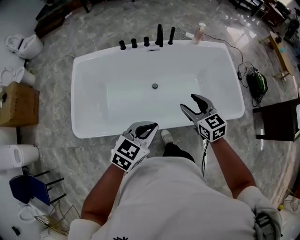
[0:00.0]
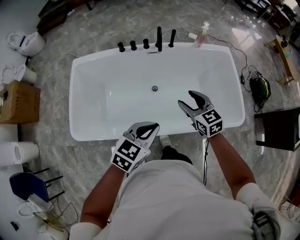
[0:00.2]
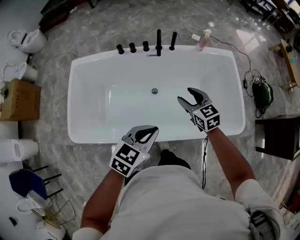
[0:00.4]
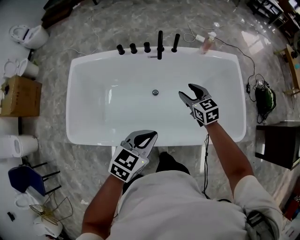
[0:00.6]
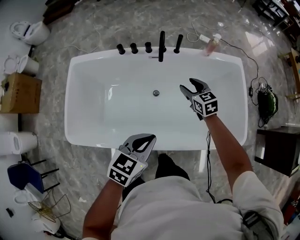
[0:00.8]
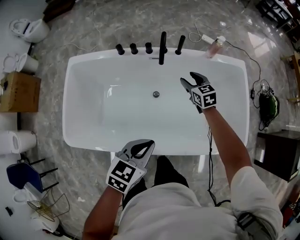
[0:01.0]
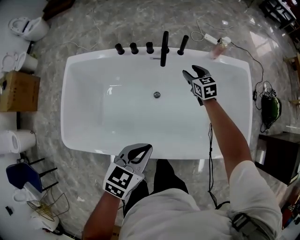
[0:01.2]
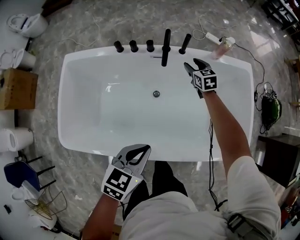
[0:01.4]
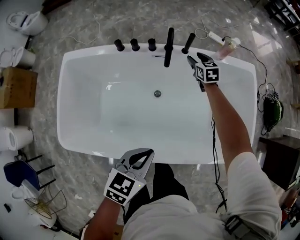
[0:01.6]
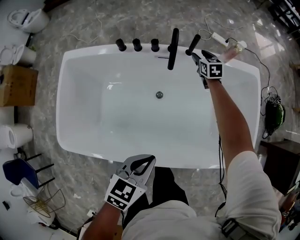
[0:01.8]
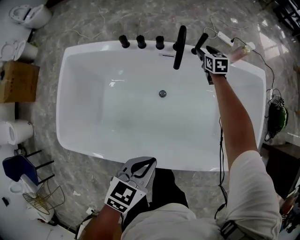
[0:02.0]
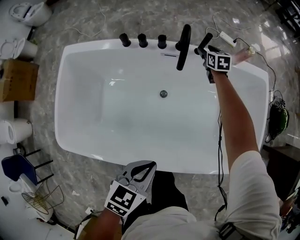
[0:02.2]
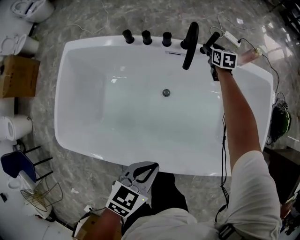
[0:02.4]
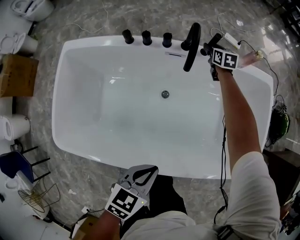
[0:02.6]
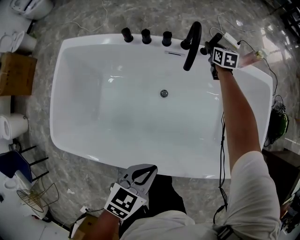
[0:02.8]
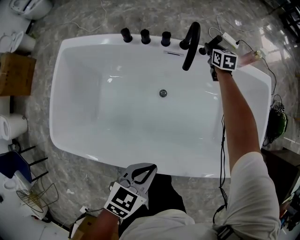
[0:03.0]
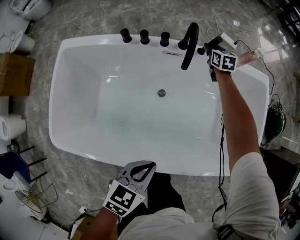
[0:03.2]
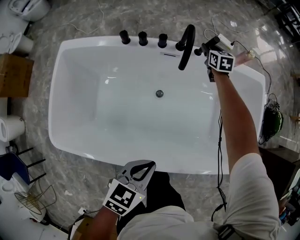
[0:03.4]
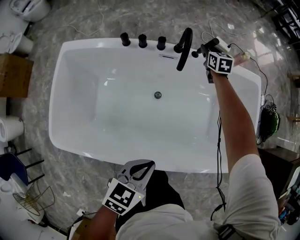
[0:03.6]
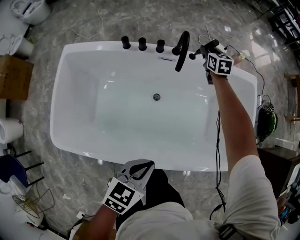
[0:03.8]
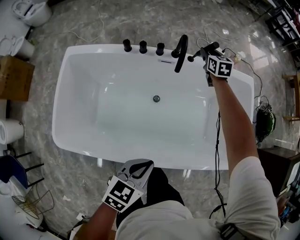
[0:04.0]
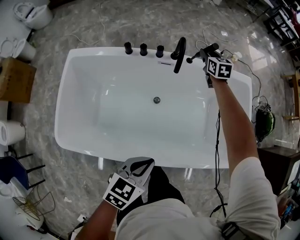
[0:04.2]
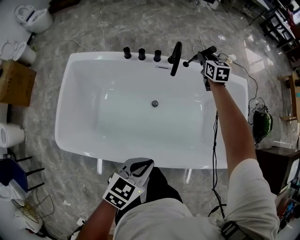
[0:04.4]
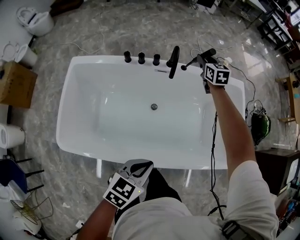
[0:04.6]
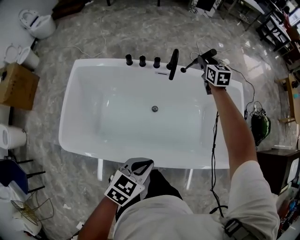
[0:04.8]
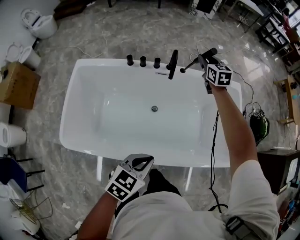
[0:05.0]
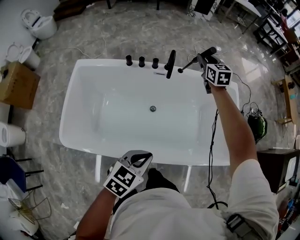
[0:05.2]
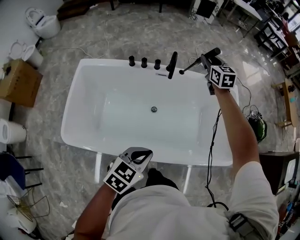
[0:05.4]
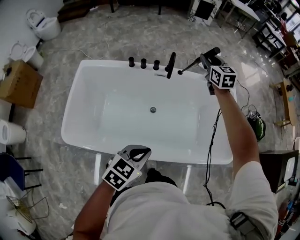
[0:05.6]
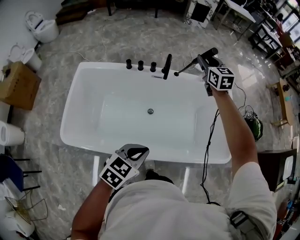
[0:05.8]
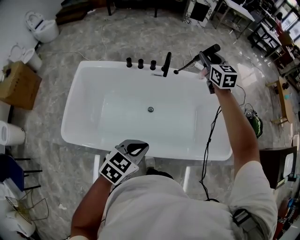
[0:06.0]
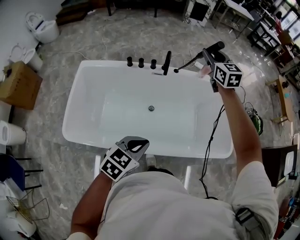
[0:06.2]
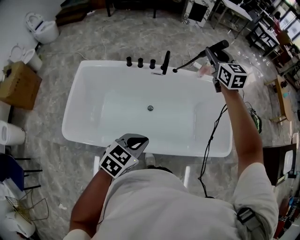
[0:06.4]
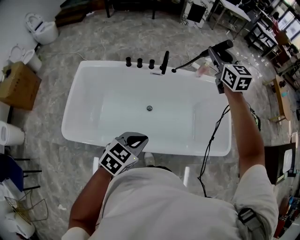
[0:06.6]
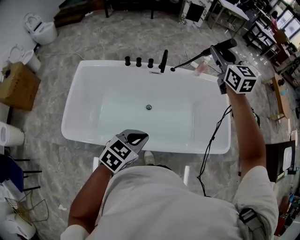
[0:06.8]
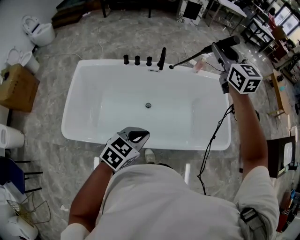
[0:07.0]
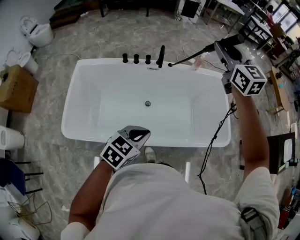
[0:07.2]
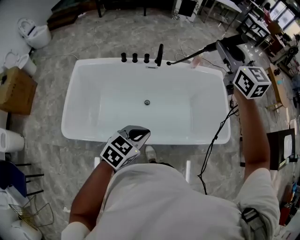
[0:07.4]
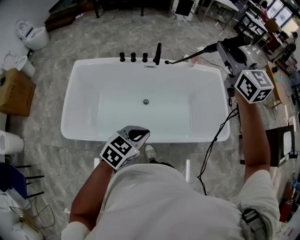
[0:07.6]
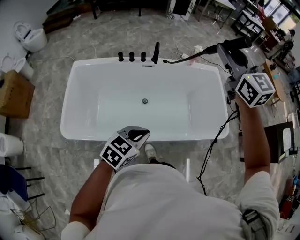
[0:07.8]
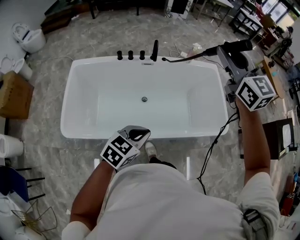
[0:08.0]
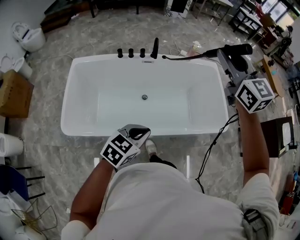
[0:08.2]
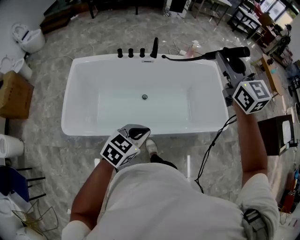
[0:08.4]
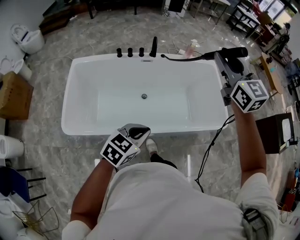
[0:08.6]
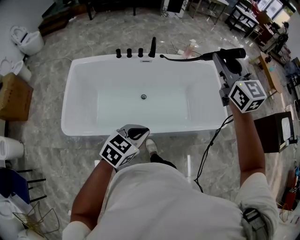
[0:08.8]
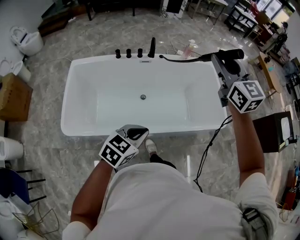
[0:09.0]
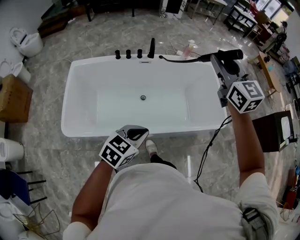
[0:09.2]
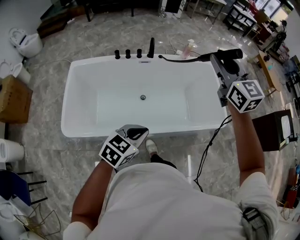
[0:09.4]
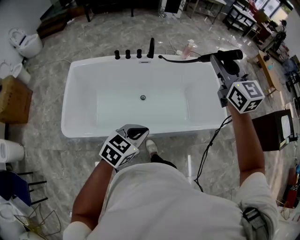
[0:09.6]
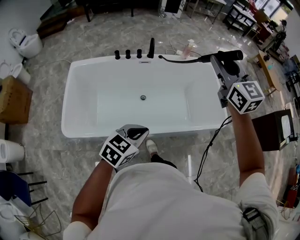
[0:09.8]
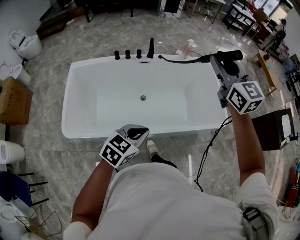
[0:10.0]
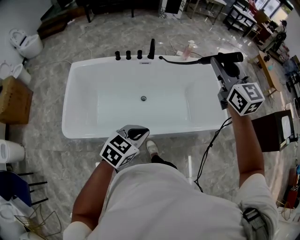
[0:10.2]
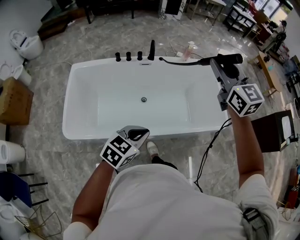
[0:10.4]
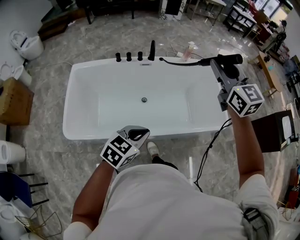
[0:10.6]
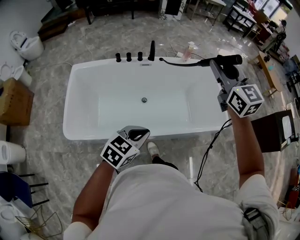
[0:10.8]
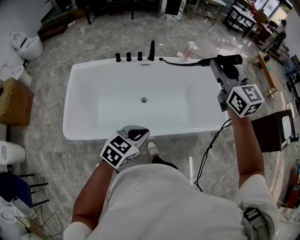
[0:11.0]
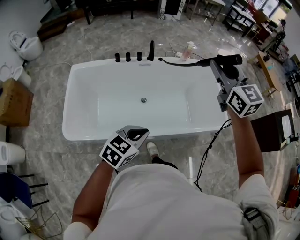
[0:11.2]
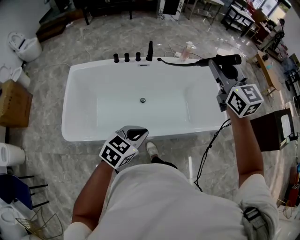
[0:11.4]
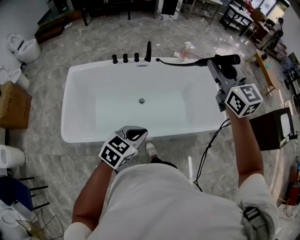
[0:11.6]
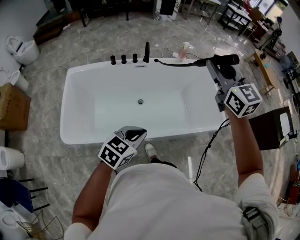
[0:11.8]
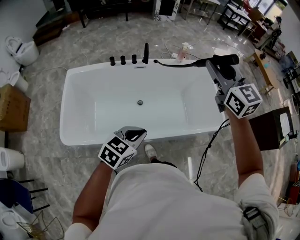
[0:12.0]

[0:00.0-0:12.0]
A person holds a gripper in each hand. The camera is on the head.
0:00.0 to 0:01.6: The left gripper travels forward and downward by some 20 cm, and turns by about 20 degrees. The right gripper heads forward and downward, covering roughly 60 cm.
0:01.6 to 0:03.0: The left gripper goes about 10 cm downward. Meanwhile the right gripper moves forward and downward, roughly 10 cm.
0:03.0 to 0:04.4: The right gripper shifts approximately 20 cm upward and backward. Meanwhile the left gripper goes about 10 cm upward and backward.
0:04.4 to 0:06.0: The right gripper travels upward and backward by about 30 cm. The left gripper goes approximately 10 cm upward and backward.
0:06.0 to 0:07.6: The left gripper moves backward, about 5 cm; the right gripper heads backward and upward, covering roughly 30 cm.
0:07.6 to 0:09.0: Both grippers travel together backward, roughly 10 cm.
0:09.0 to 0:10.4: Both grippers stay put.
0:10.4 to 0:12.0: The grippers move only a little.

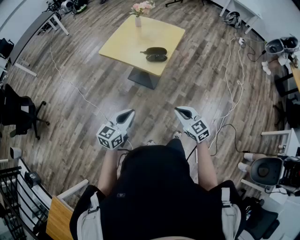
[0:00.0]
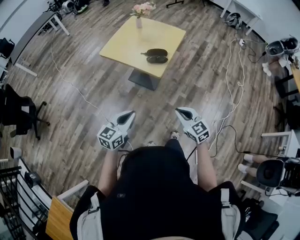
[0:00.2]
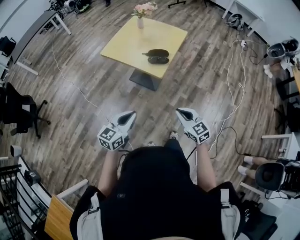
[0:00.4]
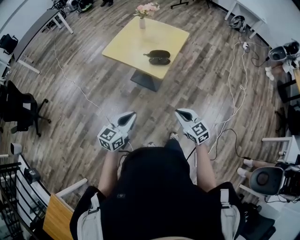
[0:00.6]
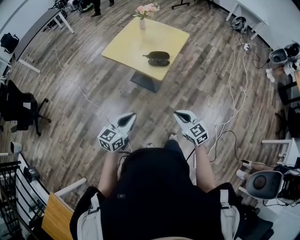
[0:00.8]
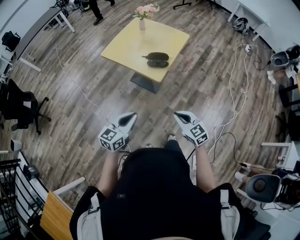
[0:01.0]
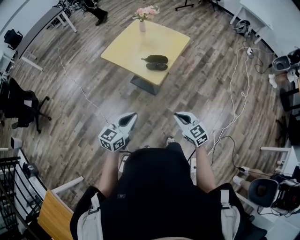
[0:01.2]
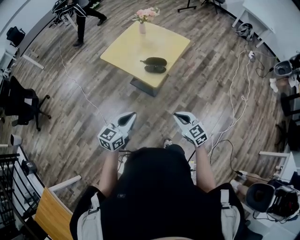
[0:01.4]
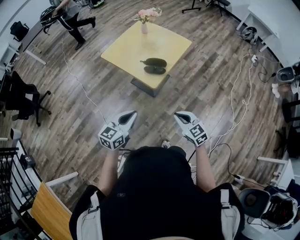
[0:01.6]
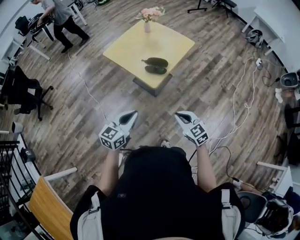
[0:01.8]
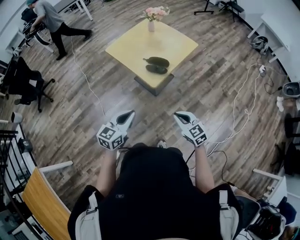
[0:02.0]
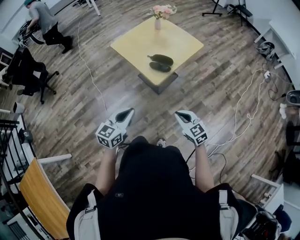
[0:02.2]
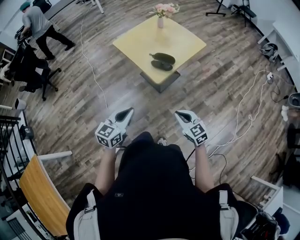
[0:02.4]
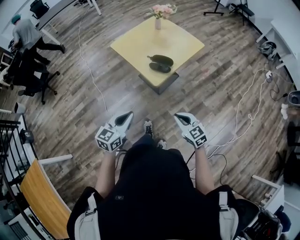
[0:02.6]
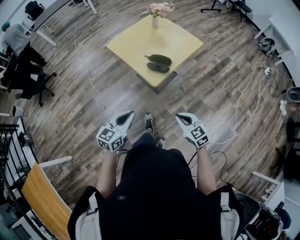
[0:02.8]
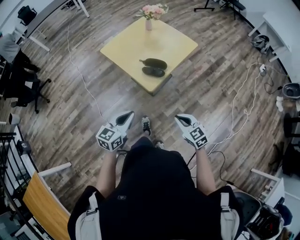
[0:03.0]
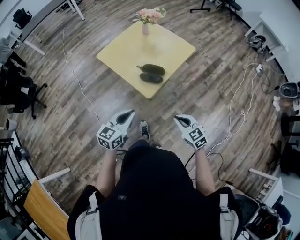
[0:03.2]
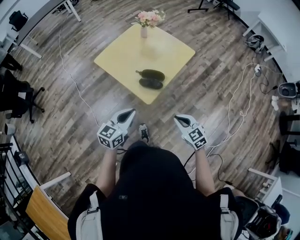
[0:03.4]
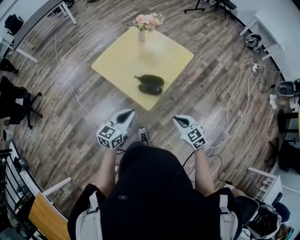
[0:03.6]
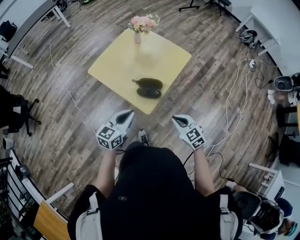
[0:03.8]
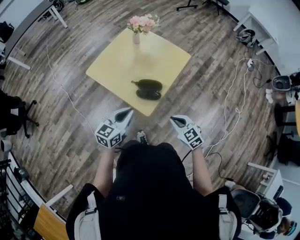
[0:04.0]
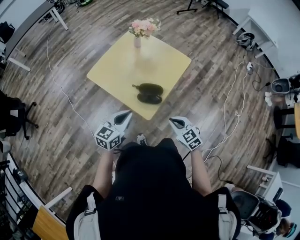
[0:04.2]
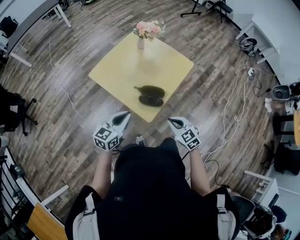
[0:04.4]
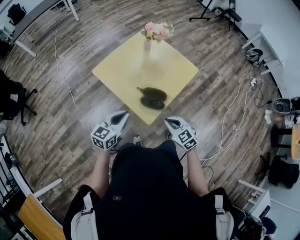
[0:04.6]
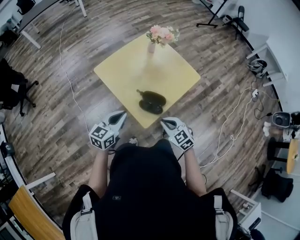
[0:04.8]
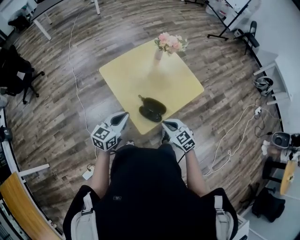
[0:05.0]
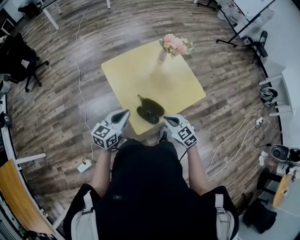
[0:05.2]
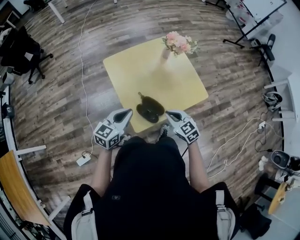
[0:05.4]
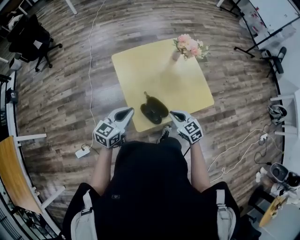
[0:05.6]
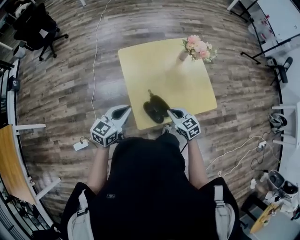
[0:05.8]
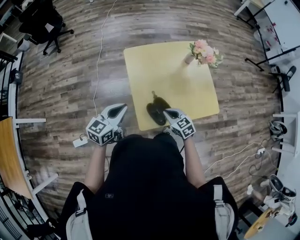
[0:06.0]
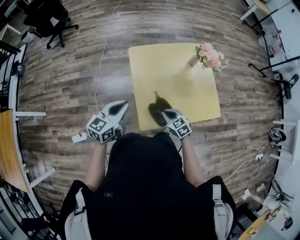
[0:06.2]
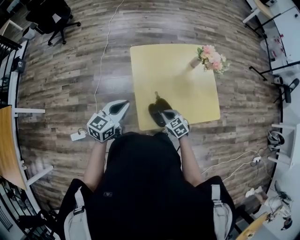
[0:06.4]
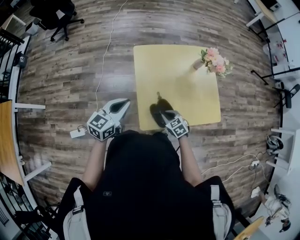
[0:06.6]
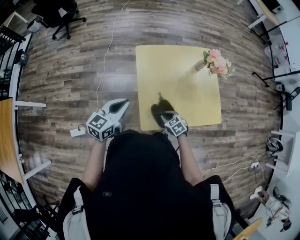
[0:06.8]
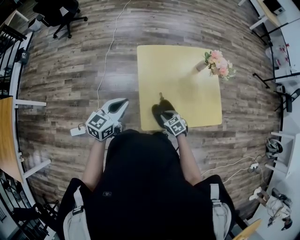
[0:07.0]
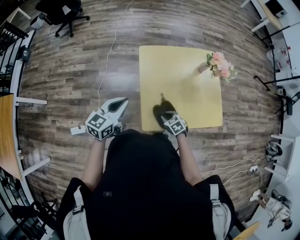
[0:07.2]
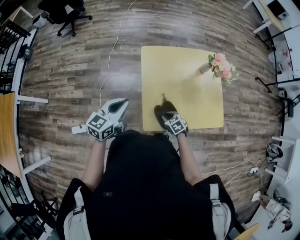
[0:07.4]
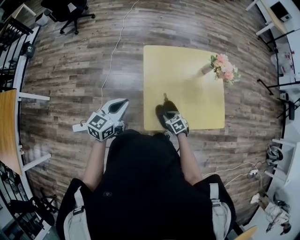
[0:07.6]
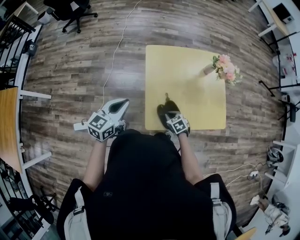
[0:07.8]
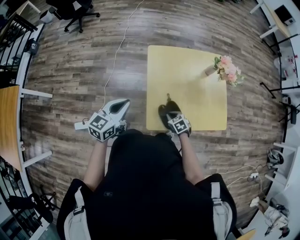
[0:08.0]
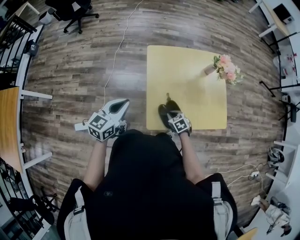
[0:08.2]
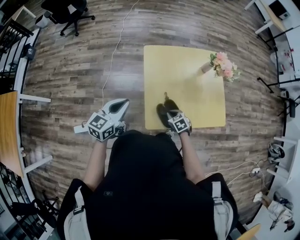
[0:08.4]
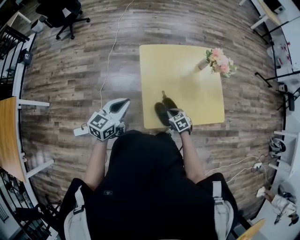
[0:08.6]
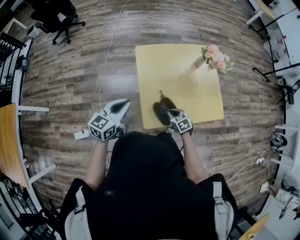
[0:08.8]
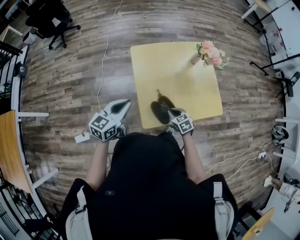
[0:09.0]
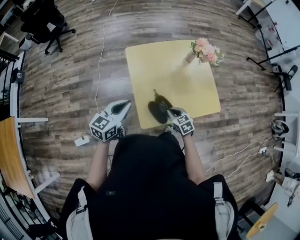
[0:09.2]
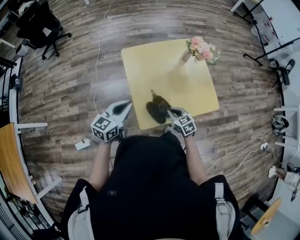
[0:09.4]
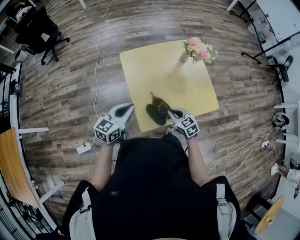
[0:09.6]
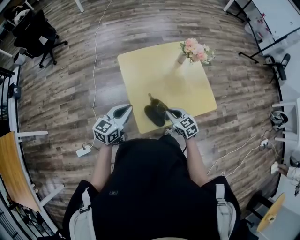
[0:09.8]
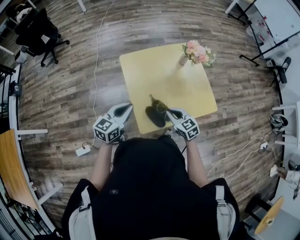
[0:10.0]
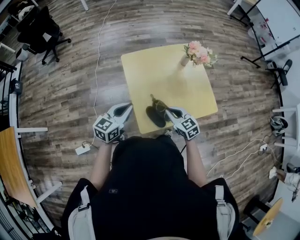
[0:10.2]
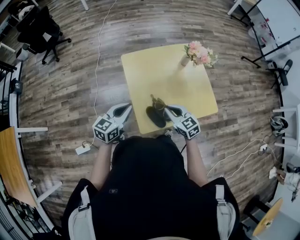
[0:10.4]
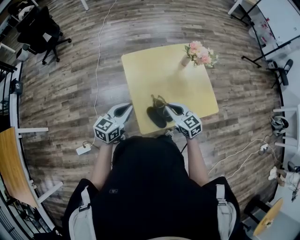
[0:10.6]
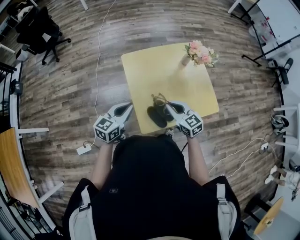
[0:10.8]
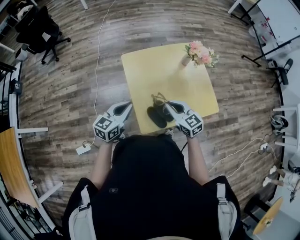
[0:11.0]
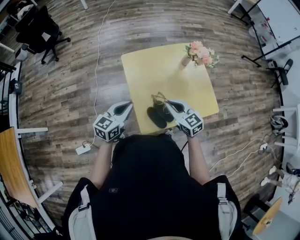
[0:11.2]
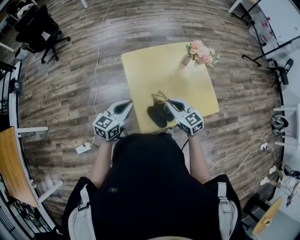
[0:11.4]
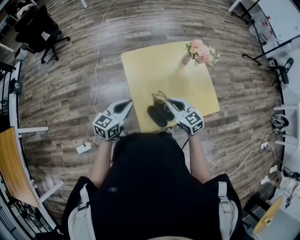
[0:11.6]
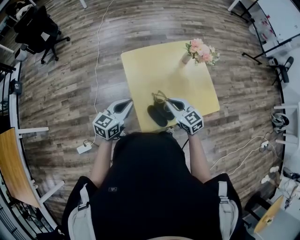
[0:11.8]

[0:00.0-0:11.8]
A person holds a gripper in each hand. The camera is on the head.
0:00.0 to 0:01.4: The grippers both shift to the right and forward by approximately 10 cm.
0:01.4 to 0:03.0: The two grippers go some 10 cm to the right and forward.
0:03.0 to 0:04.4: The grippers both shift forward by about 20 cm.
0:04.4 to 0:06.0: The left gripper changes its angle by approximately 40 degrees. Meanwhile the right gripper moves about 20 cm, and swivels approximately 40 degrees.
0:06.0 to 0:07.4: The right gripper travels downward by roughly 10 cm, and changes its angle by about 20 degrees.
0:07.4 to 0:08.8: There are only small adjustments of the grippers.
0:08.8 to 0:10.4: The left gripper travels to the right by some 5 cm. Meanwhile the right gripper heads upward, covering about 15 cm, and turns by approximately 30 degrees.
0:10.4 to 0:11.8: There are only small adjustments of the grippers.
